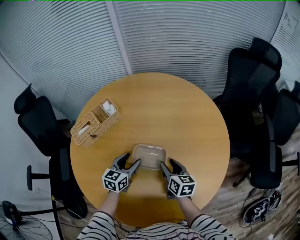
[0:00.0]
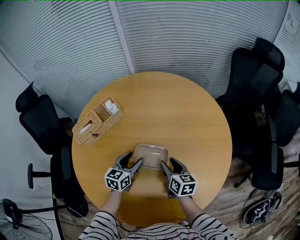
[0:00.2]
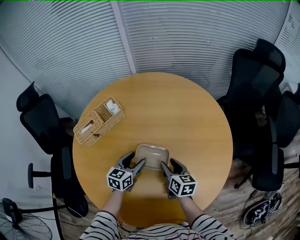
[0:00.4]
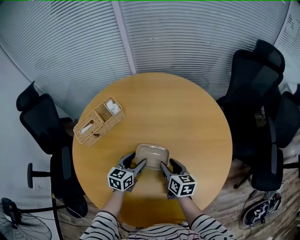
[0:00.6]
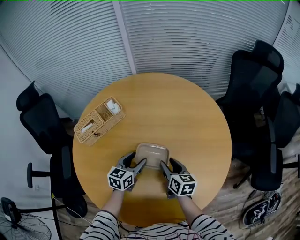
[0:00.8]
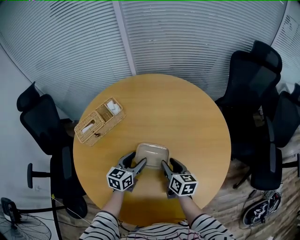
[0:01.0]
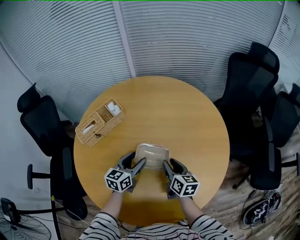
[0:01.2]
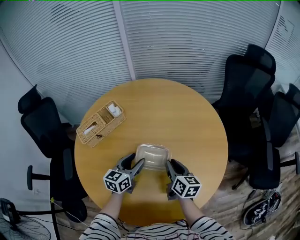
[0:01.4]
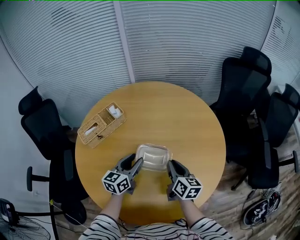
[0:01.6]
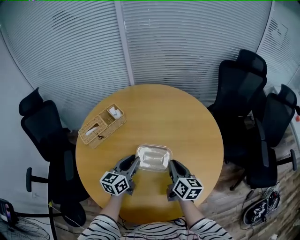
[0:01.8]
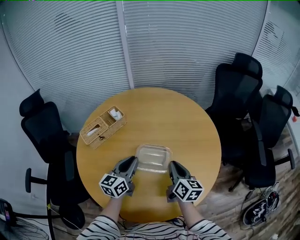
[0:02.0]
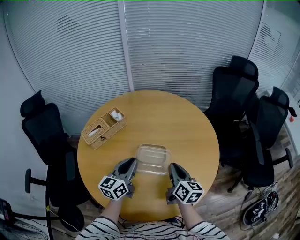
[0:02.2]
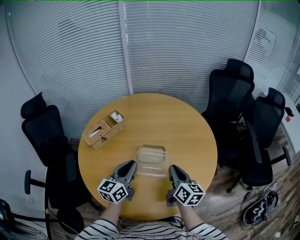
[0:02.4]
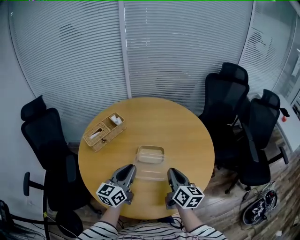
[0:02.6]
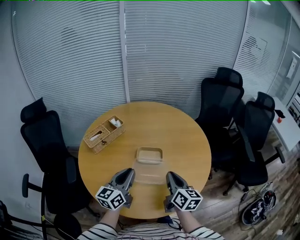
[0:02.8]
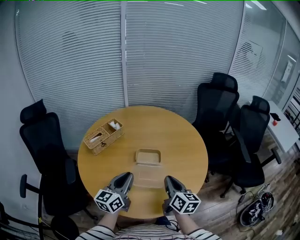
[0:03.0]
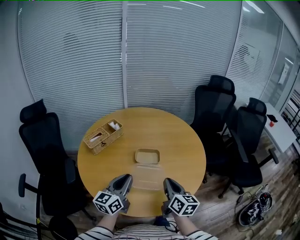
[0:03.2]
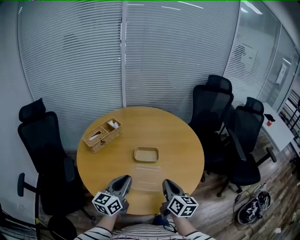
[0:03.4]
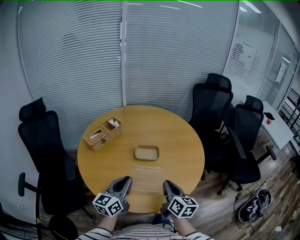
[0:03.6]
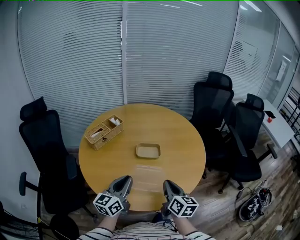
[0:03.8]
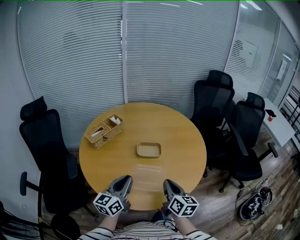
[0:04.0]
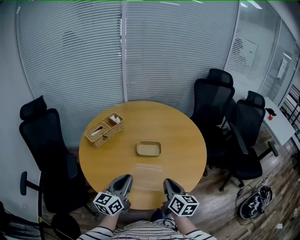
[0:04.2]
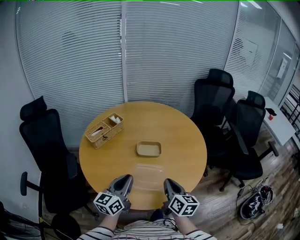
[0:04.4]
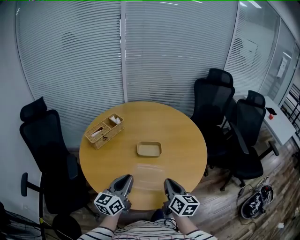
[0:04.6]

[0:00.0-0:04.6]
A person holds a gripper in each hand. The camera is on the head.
0:00.0 to 0:01.6: Both grippers move upward, approximately 10 cm. The right gripper closes.
0:01.6 to 0:03.0: The two grippers go about 25 cm backward and upward. The left gripper closes.
0:03.0 to 0:04.6: Both grippers move backward, some 5 cm.

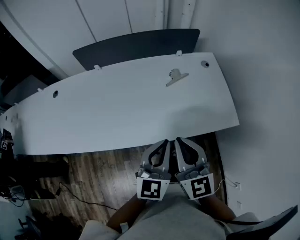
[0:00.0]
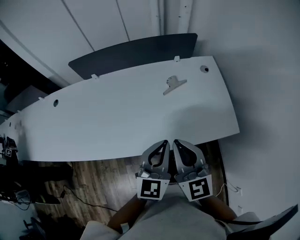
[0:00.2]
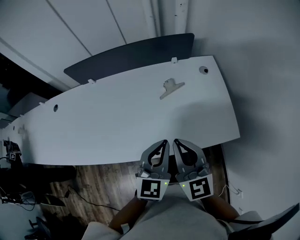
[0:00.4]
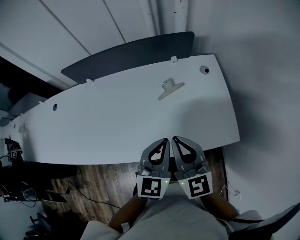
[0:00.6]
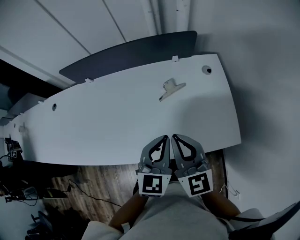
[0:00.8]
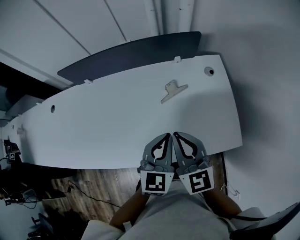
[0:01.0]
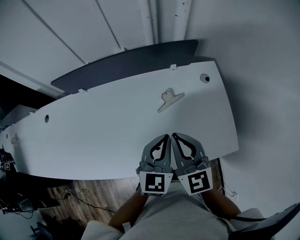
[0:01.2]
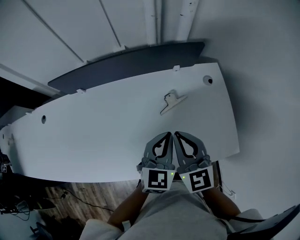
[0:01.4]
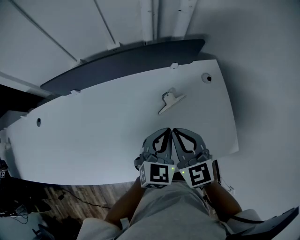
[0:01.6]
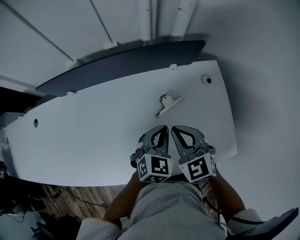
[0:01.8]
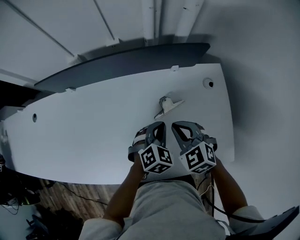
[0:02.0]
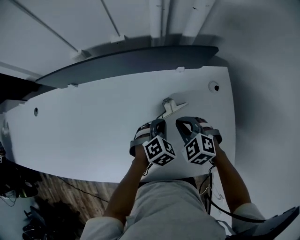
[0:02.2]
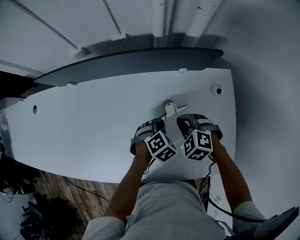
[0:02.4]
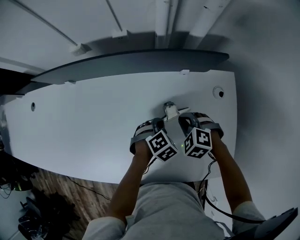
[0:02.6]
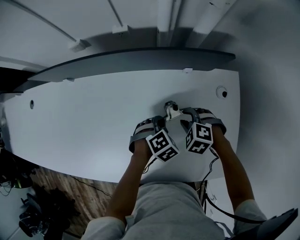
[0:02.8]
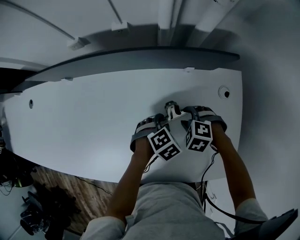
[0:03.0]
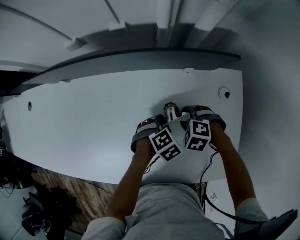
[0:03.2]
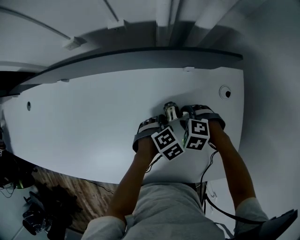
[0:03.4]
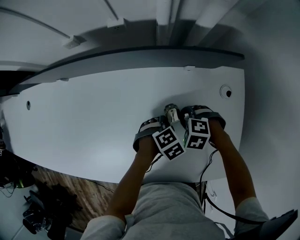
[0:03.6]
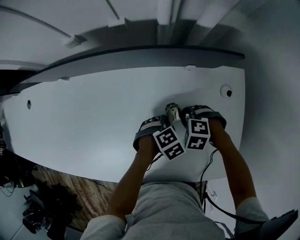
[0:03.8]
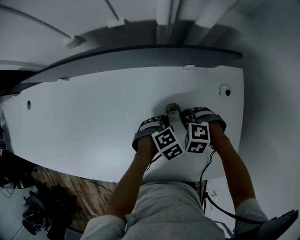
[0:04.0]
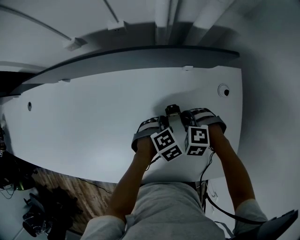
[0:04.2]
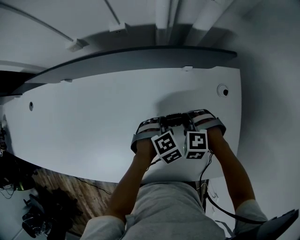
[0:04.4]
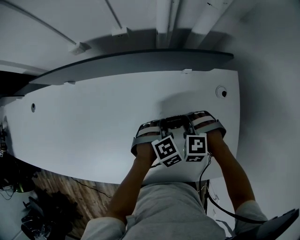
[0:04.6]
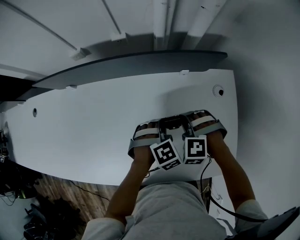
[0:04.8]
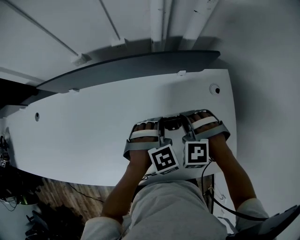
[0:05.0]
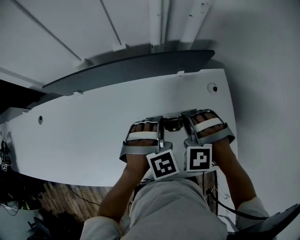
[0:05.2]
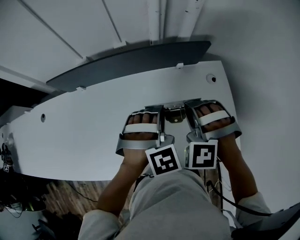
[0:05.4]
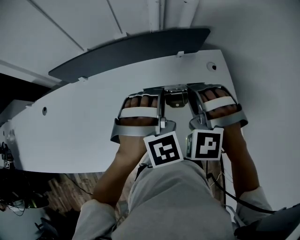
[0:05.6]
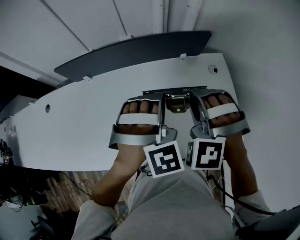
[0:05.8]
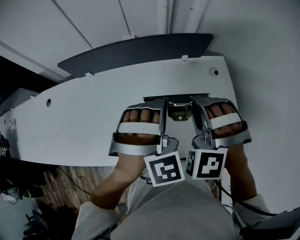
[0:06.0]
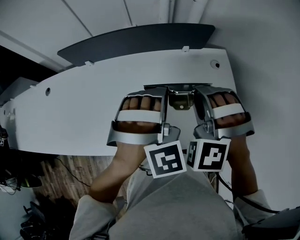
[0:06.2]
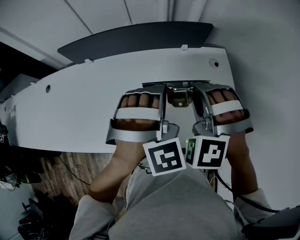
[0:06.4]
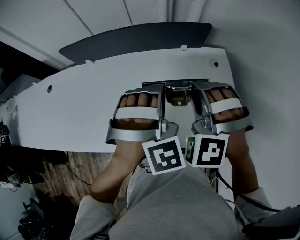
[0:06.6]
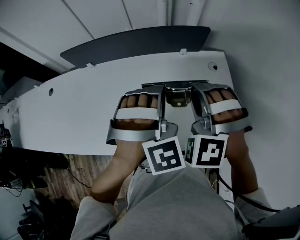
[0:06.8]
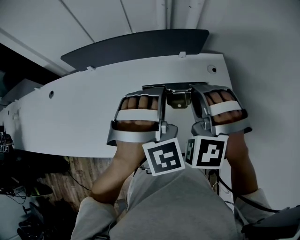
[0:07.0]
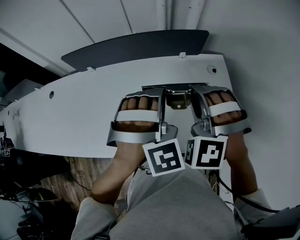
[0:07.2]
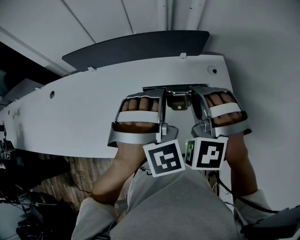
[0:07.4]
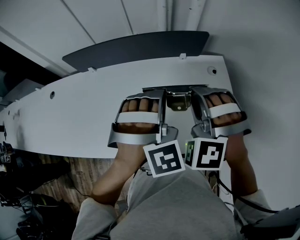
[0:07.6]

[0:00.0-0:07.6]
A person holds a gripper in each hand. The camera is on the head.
0:00.0 to 0:01.6: The two grippers go roughly 30 cm forward. The left gripper swivels roughly 20 degrees. Meanwhile the right gripper turns by about 20 degrees.
0:01.6 to 0:03.0: The grippers both shift downward by some 25 cm. The left gripper tips its fingers downward by approximately 50 degrees, and opens; the right gripper points its fingers some 50 degrees further downward, and opens up.
0:03.0 to 0:04.6: The right gripper closes up, while the left gripper closes up.
0:04.6 to 0:06.0: The two grippers go about 30 cm upward. The right gripper tips its fingers upward by some 30 degrees. The left gripper tilts its fingers about 40 degrees upward.
0:06.0 to 0:07.6: The grippers make only small movements.
